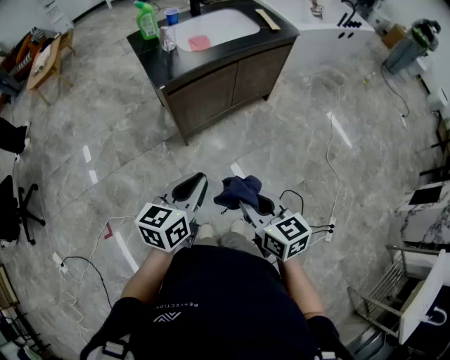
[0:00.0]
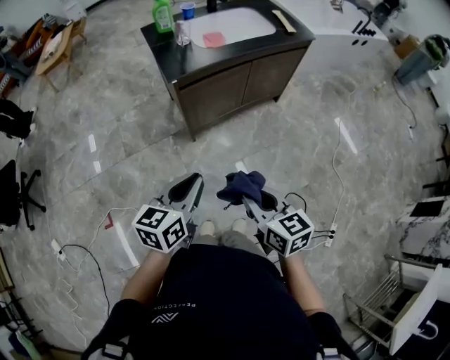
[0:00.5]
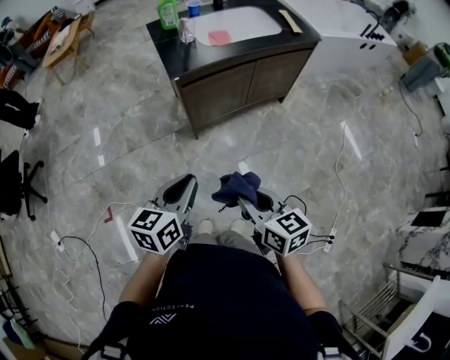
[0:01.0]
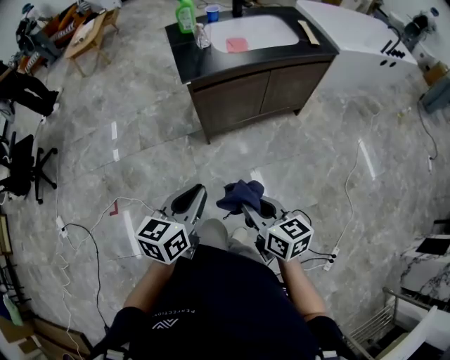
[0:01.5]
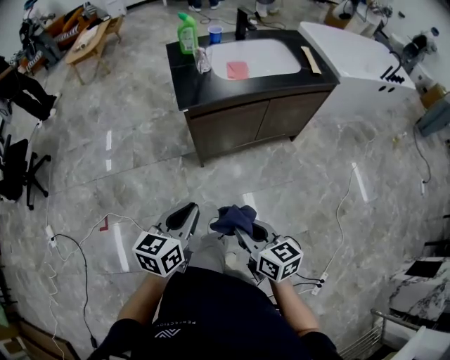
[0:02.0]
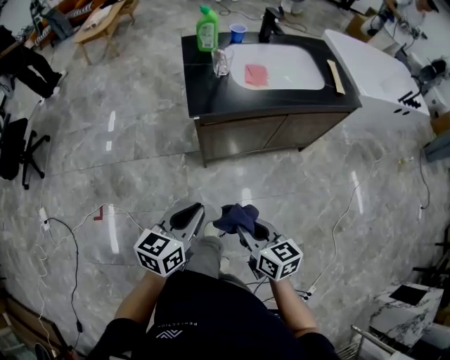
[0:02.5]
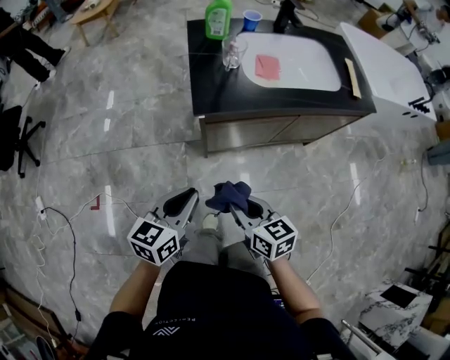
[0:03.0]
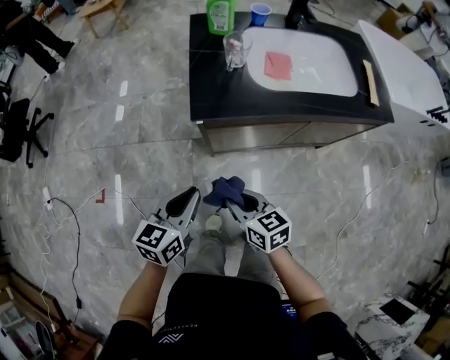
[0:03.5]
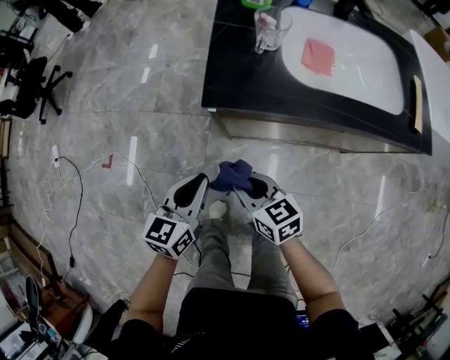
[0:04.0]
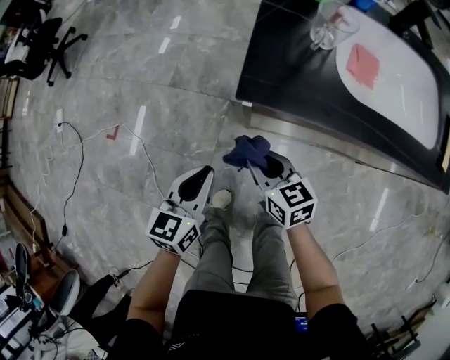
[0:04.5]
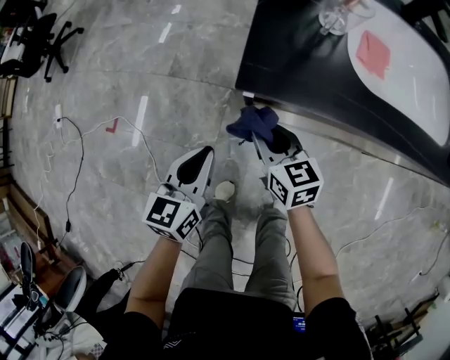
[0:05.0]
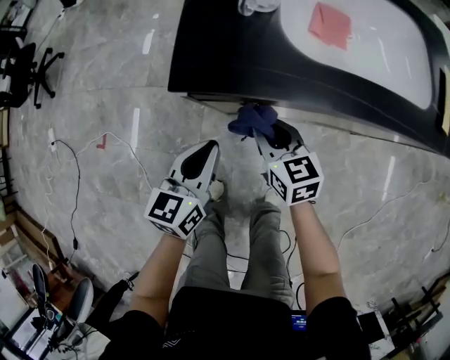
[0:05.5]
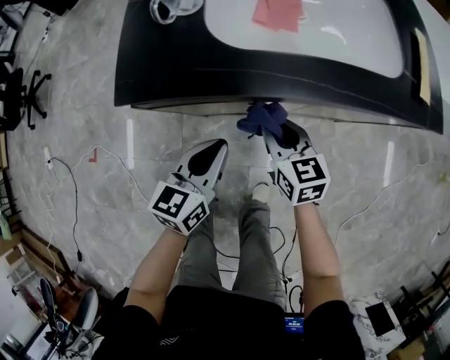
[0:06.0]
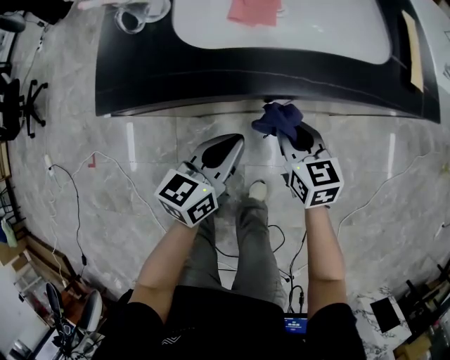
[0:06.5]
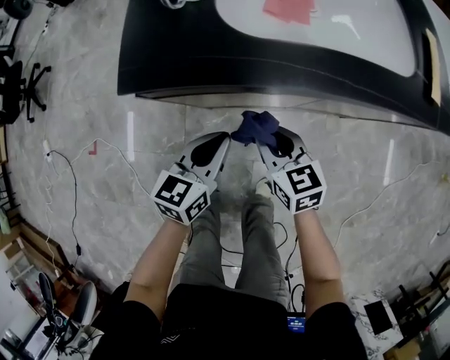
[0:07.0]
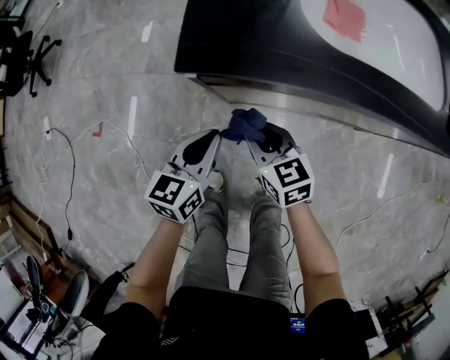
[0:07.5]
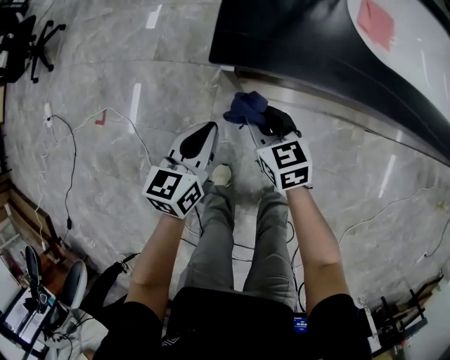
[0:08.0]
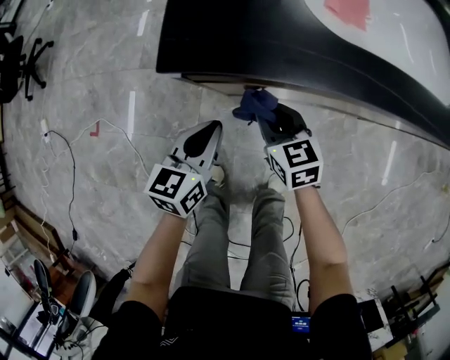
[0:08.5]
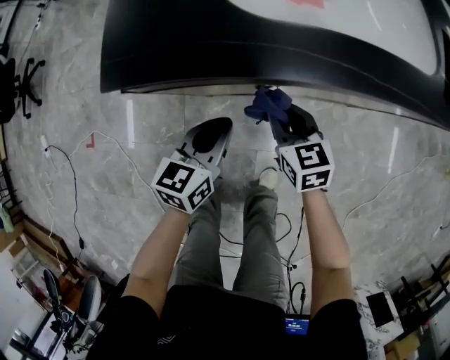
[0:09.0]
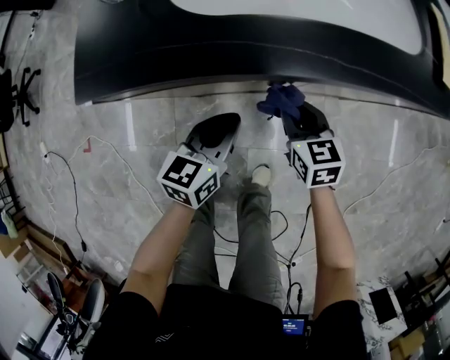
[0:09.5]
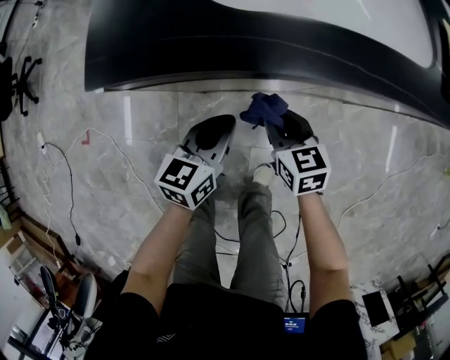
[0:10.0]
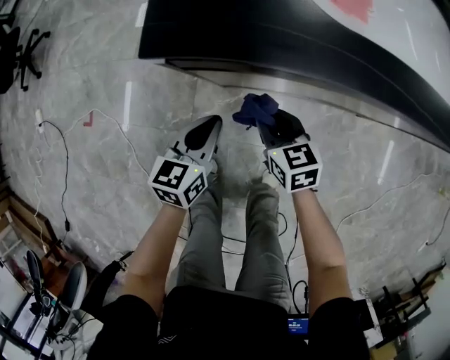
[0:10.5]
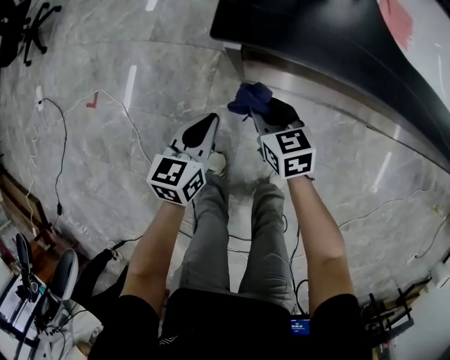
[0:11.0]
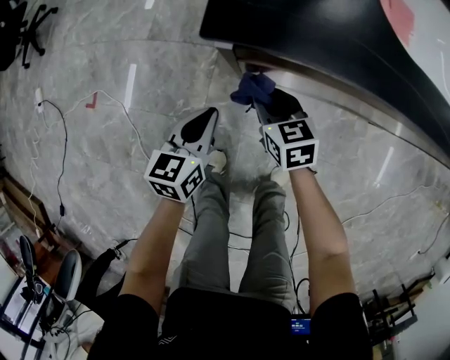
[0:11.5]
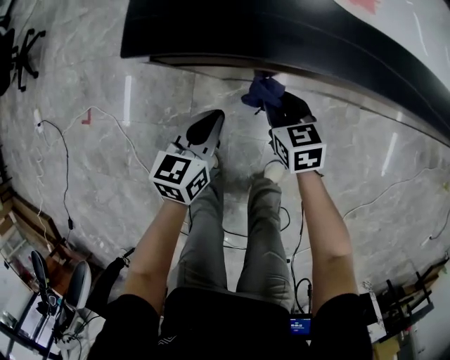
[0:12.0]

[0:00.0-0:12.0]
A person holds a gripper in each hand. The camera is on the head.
0:00.0 to 0:02.0: The right gripper heads forward, covering roughly 5 cm.
0:02.0 to 0:04.0: The left gripper shifts by approximately 25 cm, and swivels approximately 20 degrees; the right gripper changes place by some 30 cm, and turns by some 30 degrees.
0:04.0 to 0:06.0: The two grippers go approximately 20 cm to the right. The right gripper changes its angle by about 20 degrees.
0:06.0 to 0:08.0: Both grippers travel together to the left, approximately 20 cm.
0:08.0 to 0:10.0: The grippers both shift to the right by about 20 cm.
0:10.0 to 0:12.0: The left gripper is displaced to the left by roughly 10 cm, while the right gripper shifts roughly 10 cm to the left and downward.

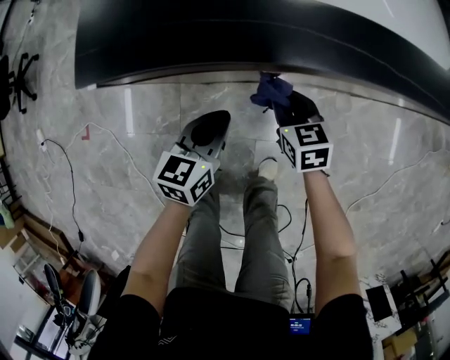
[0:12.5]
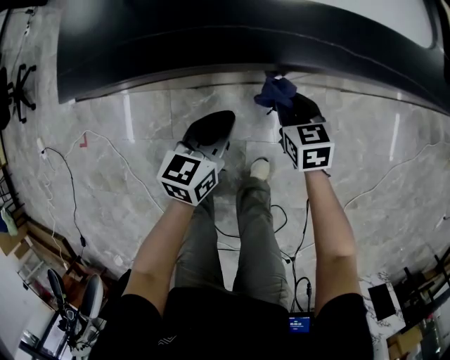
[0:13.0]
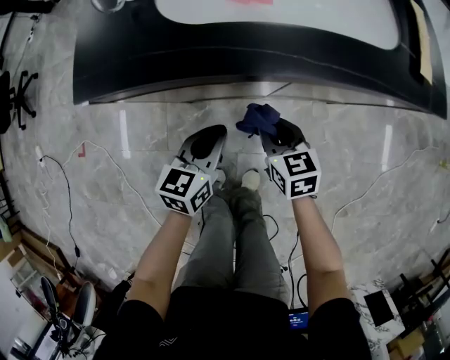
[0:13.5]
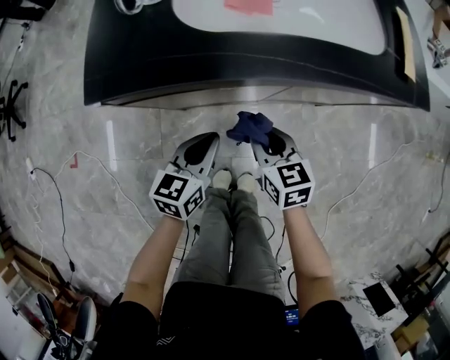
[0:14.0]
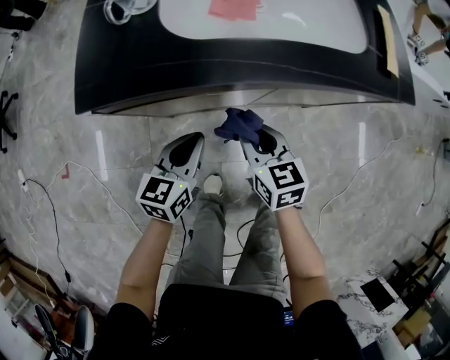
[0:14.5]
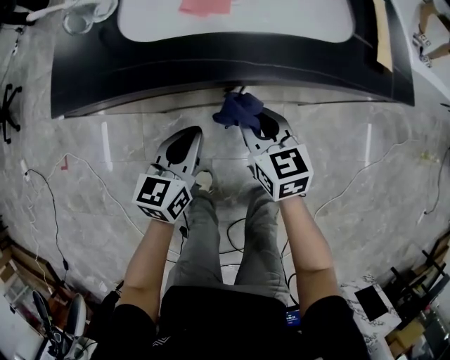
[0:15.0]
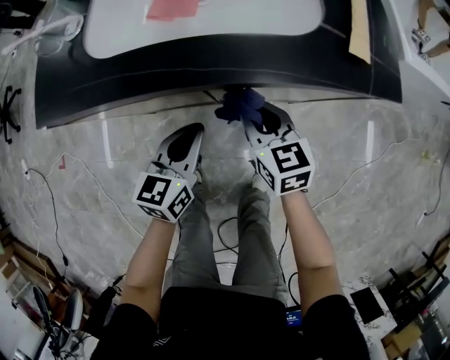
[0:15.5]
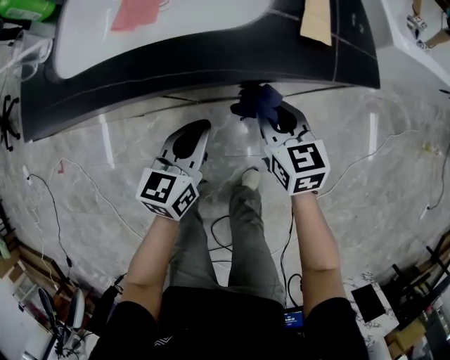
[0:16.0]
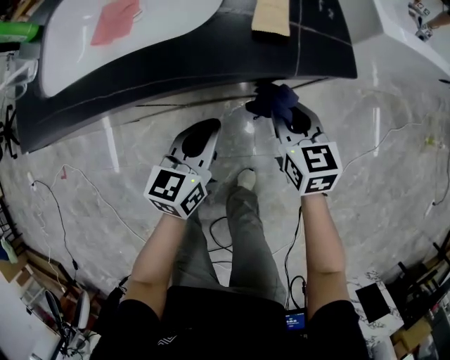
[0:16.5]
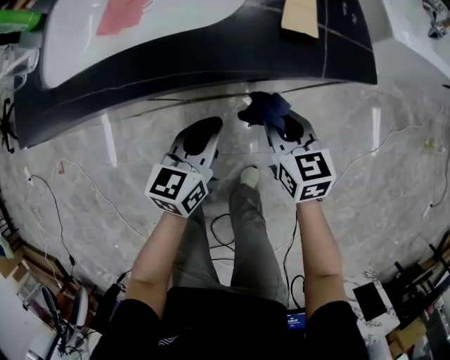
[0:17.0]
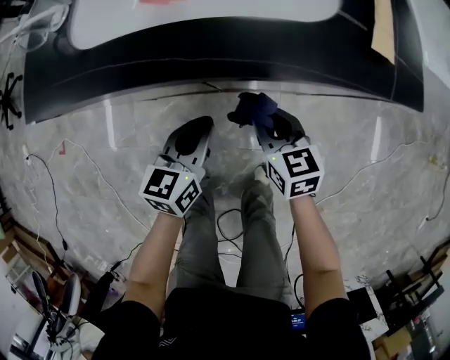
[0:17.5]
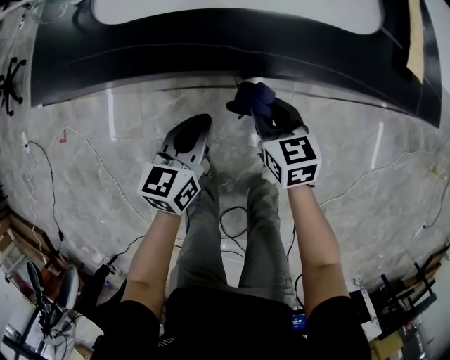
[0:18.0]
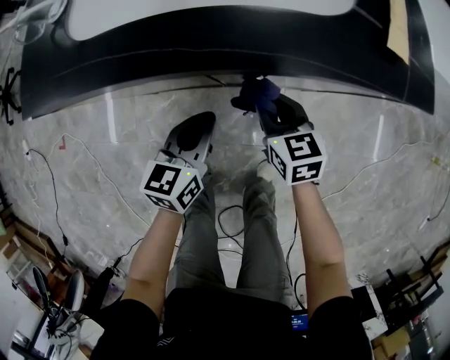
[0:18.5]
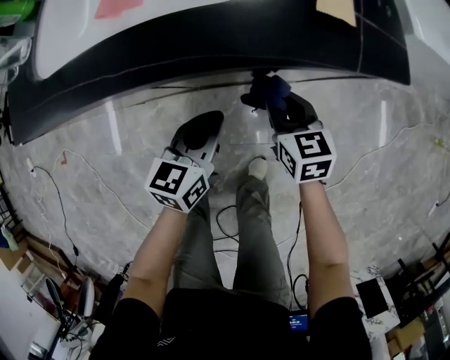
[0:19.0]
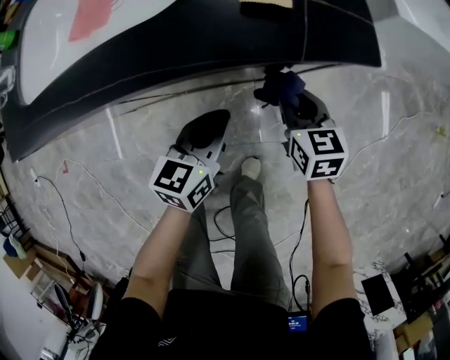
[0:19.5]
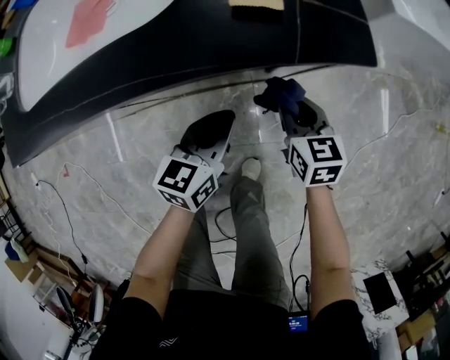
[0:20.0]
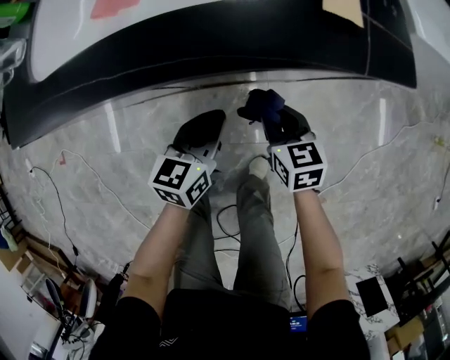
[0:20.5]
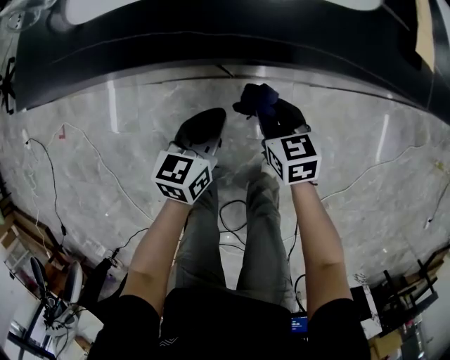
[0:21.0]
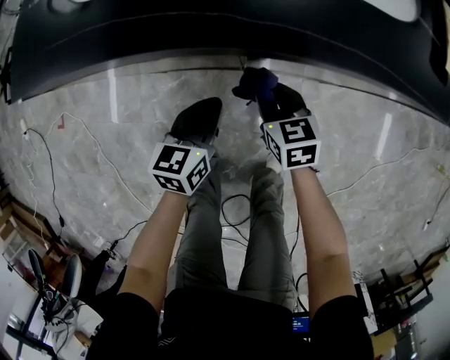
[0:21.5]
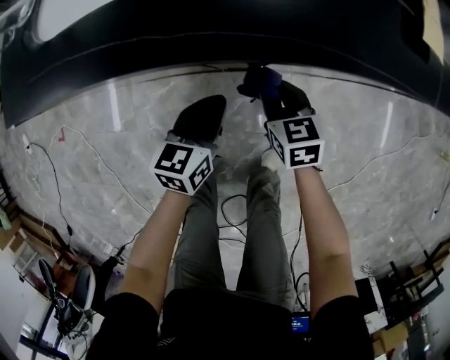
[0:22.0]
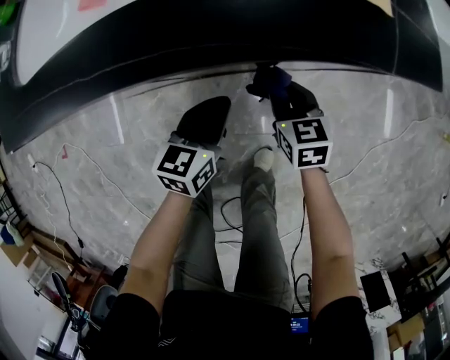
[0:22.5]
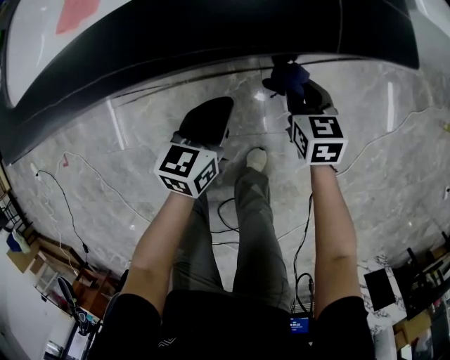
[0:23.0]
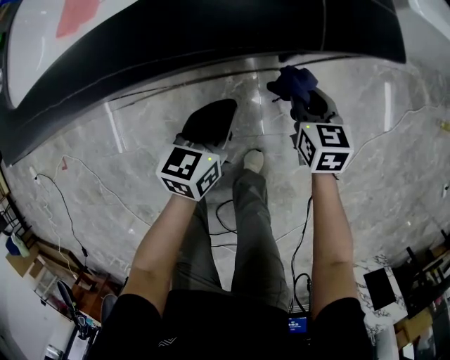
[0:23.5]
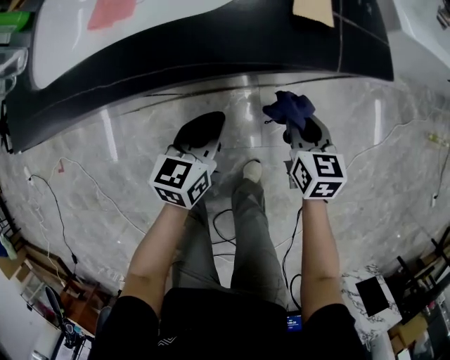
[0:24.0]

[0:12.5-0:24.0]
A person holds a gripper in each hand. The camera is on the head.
0:12.5 to 0:14.5: The right gripper is displaced upward by roughly 15 cm, while the left gripper goes roughly 5 cm upward.
0:14.5 to 0:16.5: Both grippers travel together to the right, approximately 35 cm.
0:16.5 to 0:18.5: The two grippers go some 20 cm to the left.
0:18.5 to 0:20.0: Both grippers move to the right, roughly 20 cm.
0:20.0 to 0:22.0: Both grippers travel together to the left, approximately 20 cm.
0:22.0 to 0:24.0: The left gripper moves to the right and upward, roughly 10 cm, while the right gripper is displaced to the right by some 20 cm, and swivels about 20 degrees.

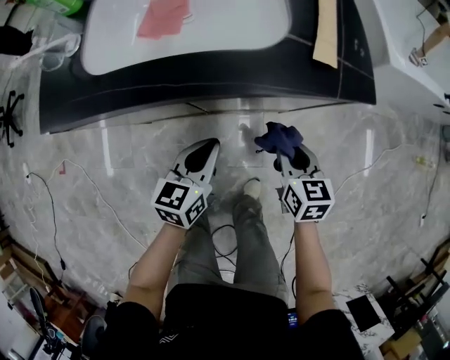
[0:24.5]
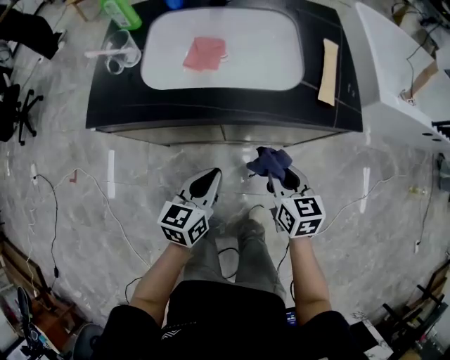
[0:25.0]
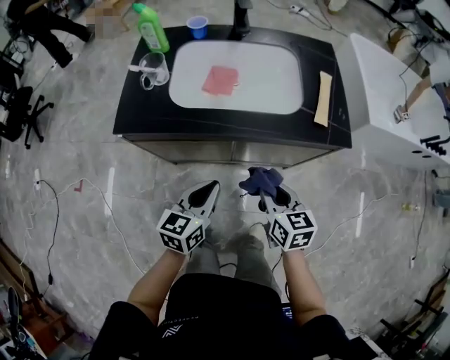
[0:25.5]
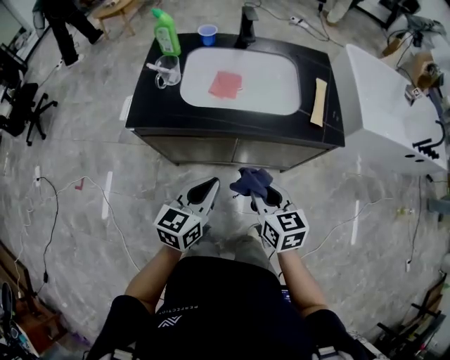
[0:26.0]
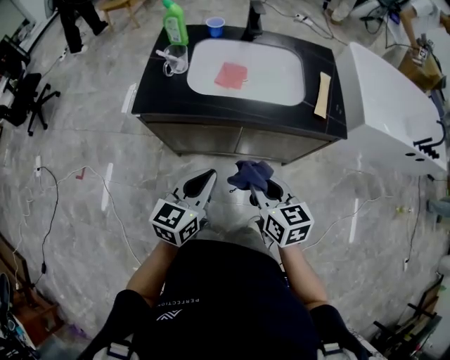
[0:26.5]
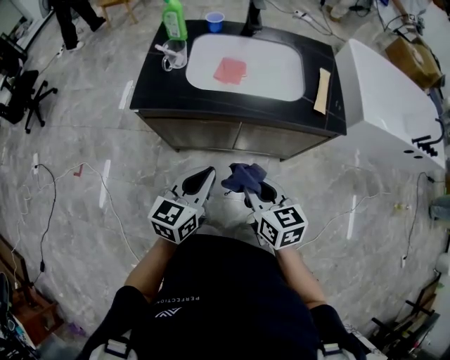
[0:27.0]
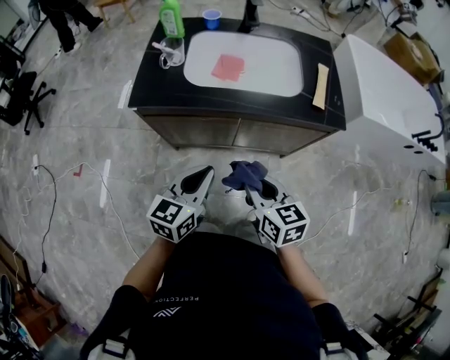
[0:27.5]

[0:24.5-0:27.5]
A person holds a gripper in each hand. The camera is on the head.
0:24.5 to 0:26.0: The left gripper is displaced upward, to the left and backward by roughly 25 cm. The right gripper goes approximately 25 cm upward and to the left.
0:26.0 to 0:27.5: The right gripper moves some 5 cm.
